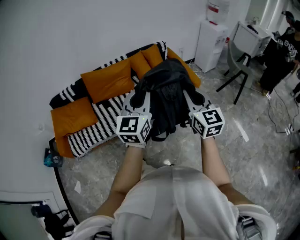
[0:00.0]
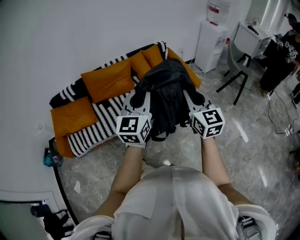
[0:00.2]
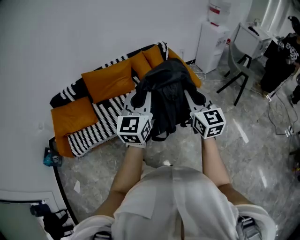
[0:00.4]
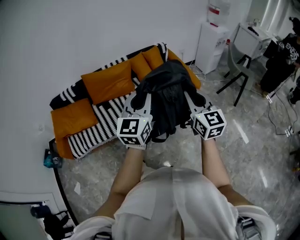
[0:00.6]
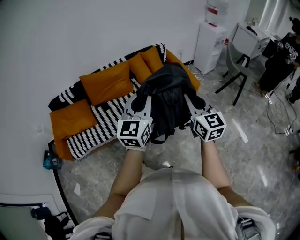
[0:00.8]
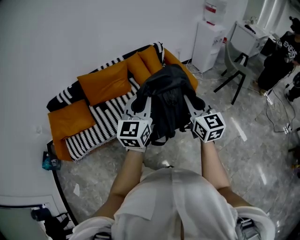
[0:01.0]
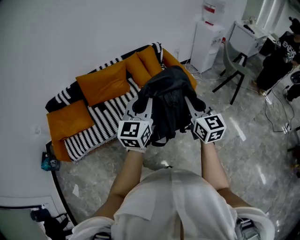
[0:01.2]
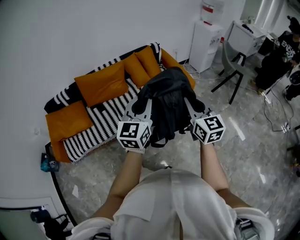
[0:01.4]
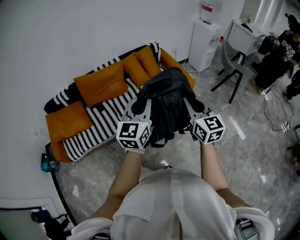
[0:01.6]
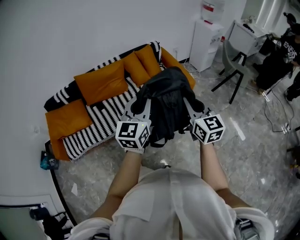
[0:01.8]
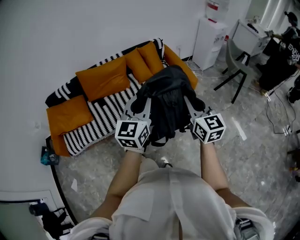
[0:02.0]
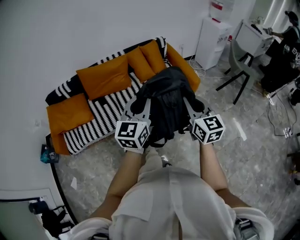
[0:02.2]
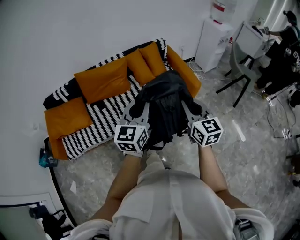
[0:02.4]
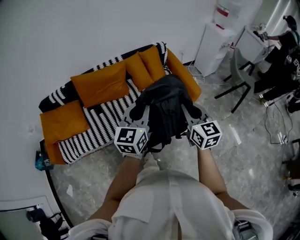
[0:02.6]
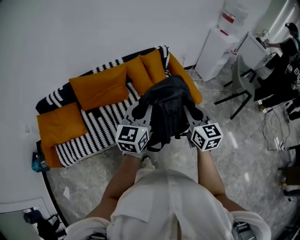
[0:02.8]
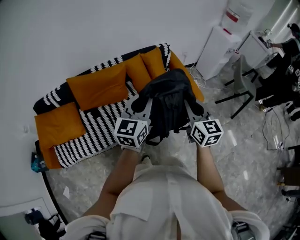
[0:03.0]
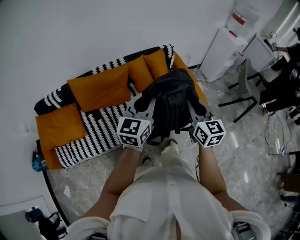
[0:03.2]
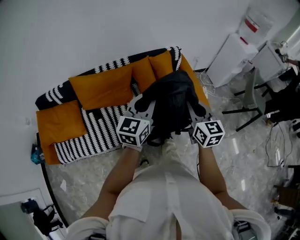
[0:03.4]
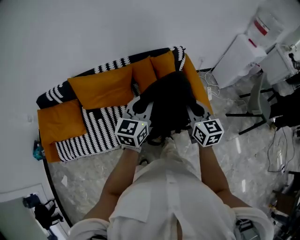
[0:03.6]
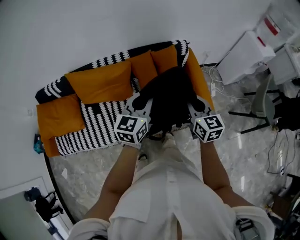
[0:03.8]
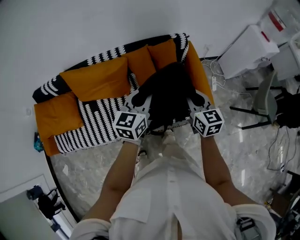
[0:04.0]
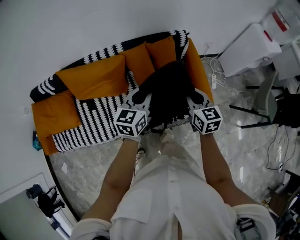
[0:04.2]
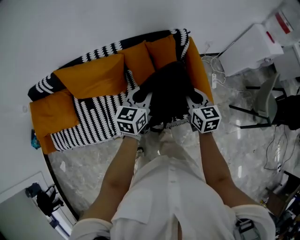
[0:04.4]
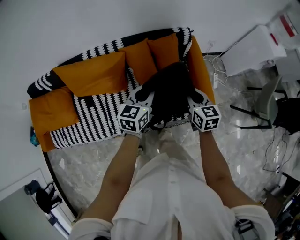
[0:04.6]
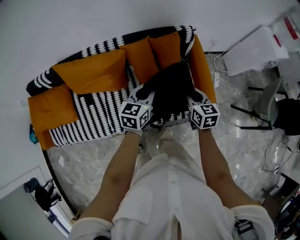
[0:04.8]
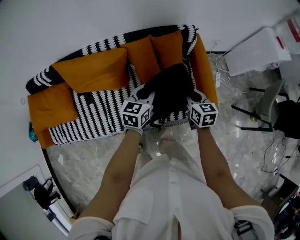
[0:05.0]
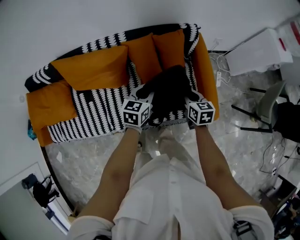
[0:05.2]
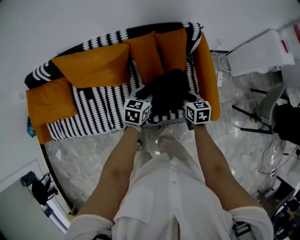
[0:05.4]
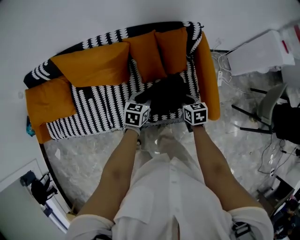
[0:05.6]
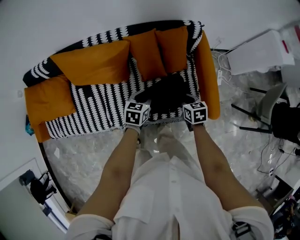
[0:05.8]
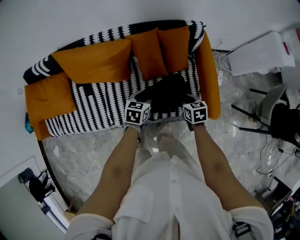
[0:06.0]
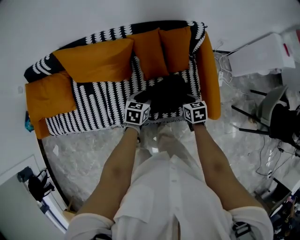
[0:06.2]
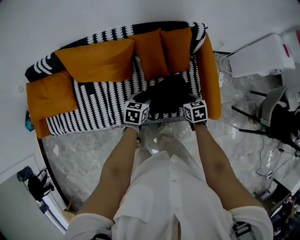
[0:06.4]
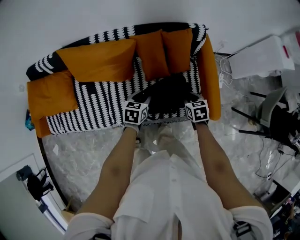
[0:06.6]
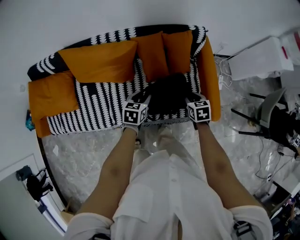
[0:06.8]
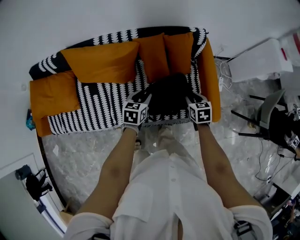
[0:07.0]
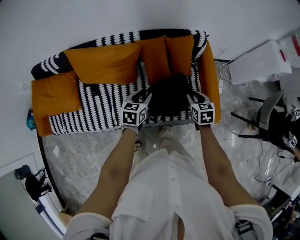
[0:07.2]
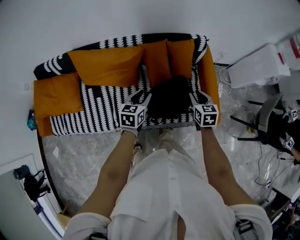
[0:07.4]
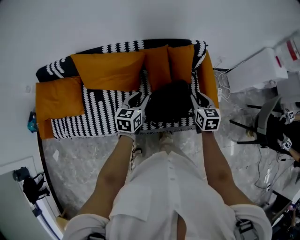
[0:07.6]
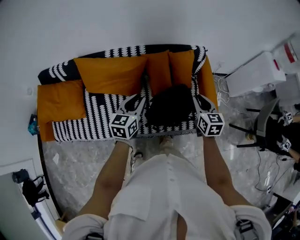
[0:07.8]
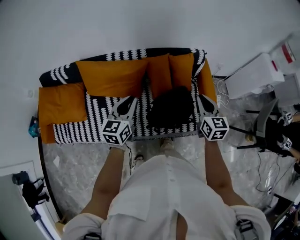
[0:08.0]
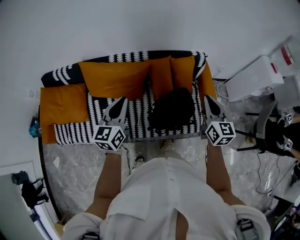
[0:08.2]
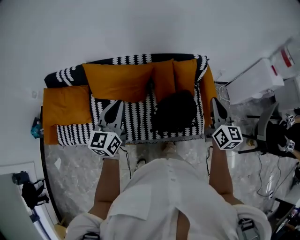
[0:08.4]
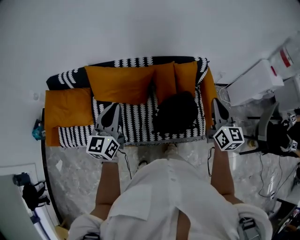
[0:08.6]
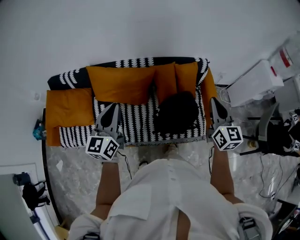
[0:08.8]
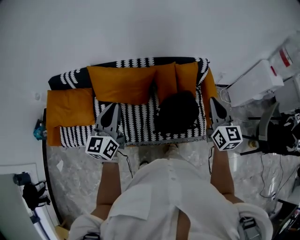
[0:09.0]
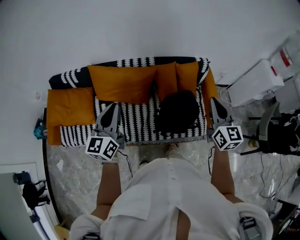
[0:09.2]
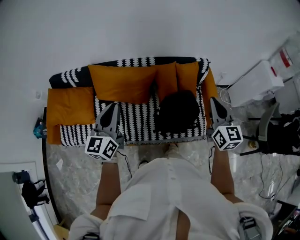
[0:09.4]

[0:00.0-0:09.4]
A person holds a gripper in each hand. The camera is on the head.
0:00.0 to 0:01.6: There are only small adjustments of the grippers.
0:01.6 to 0:03.2: The grippers both shift forward by about 30 cm.
0:03.2 to 0:04.8: Both grippers travel together forward and downward, approximately 35 cm. The right gripper rotates approximately 30 degrees; the left gripper rotates roughly 30 degrees.
0:04.8 to 0:06.2: The left gripper travels downward and to the left by about 15 cm, rotates some 20 degrees, and opens. The right gripper goes about 15 cm downward, and turns by about 20 degrees.
0:06.2 to 0:07.8: The right gripper goes some 20 cm upward, and turns by about 30 degrees; the left gripper is displaced upward and to the left by about 20 cm, and rotates some 30 degrees.
0:07.8 to 0:09.4: The left gripper travels upward, to the left and backward by some 25 cm, and turns by approximately 20 degrees. Meanwhile the right gripper is displaced upward by some 15 cm, and turns by some 20 degrees.

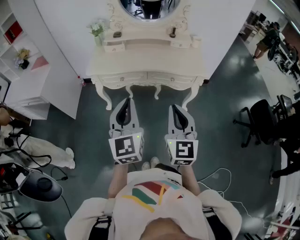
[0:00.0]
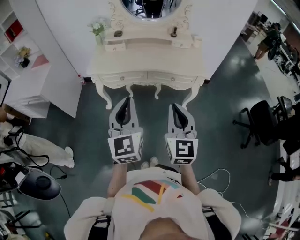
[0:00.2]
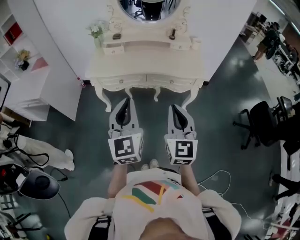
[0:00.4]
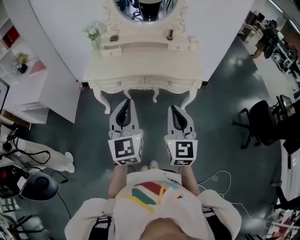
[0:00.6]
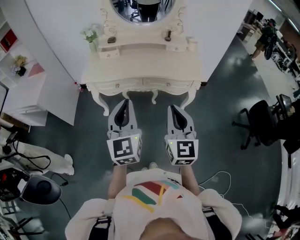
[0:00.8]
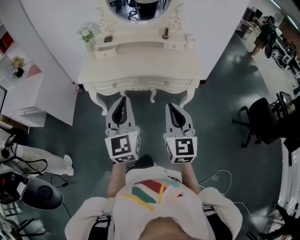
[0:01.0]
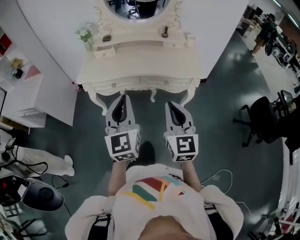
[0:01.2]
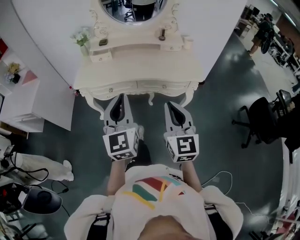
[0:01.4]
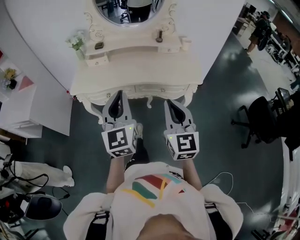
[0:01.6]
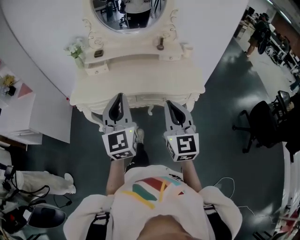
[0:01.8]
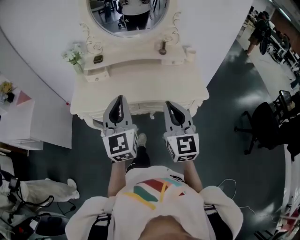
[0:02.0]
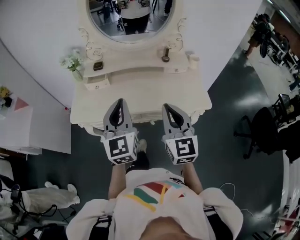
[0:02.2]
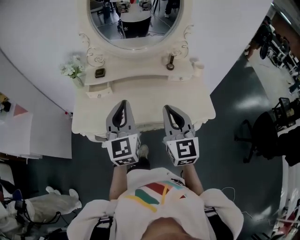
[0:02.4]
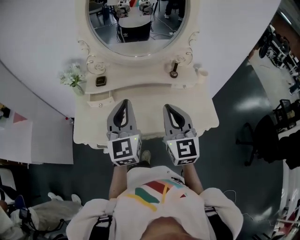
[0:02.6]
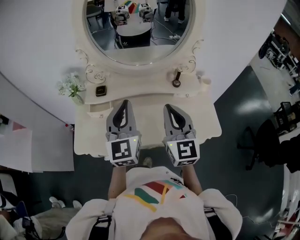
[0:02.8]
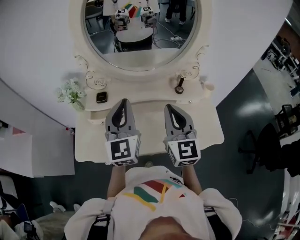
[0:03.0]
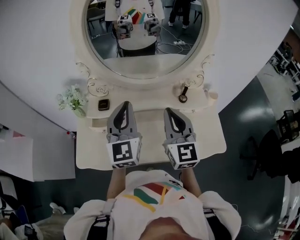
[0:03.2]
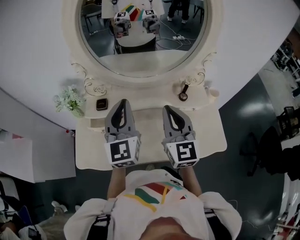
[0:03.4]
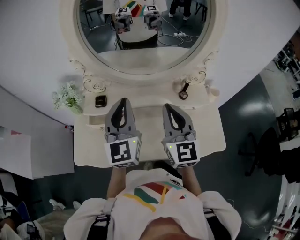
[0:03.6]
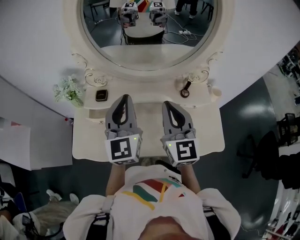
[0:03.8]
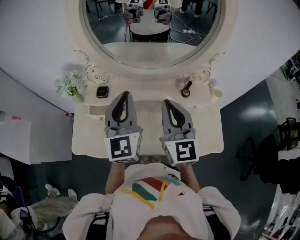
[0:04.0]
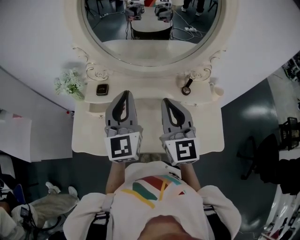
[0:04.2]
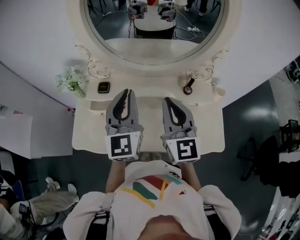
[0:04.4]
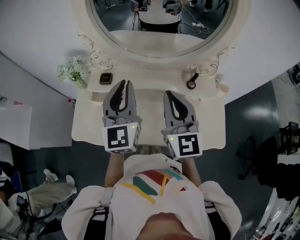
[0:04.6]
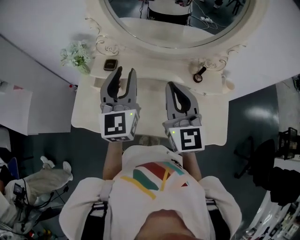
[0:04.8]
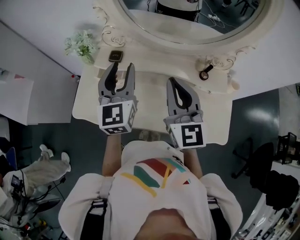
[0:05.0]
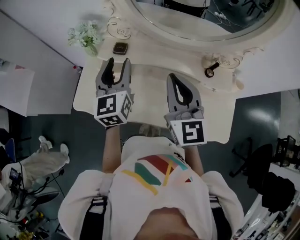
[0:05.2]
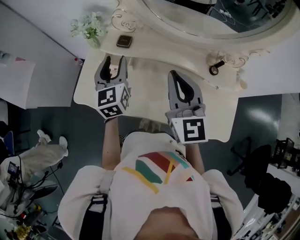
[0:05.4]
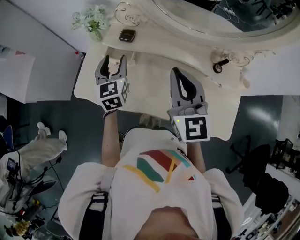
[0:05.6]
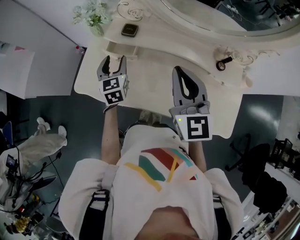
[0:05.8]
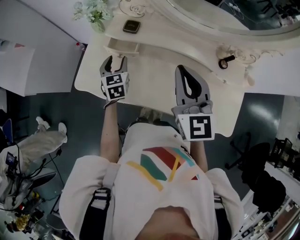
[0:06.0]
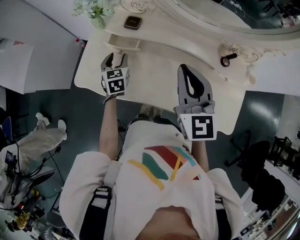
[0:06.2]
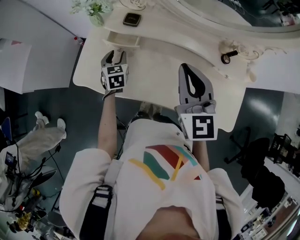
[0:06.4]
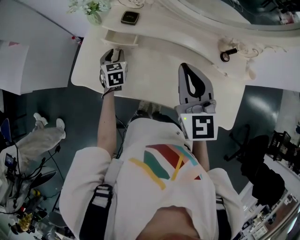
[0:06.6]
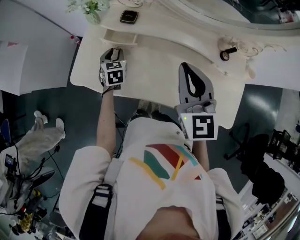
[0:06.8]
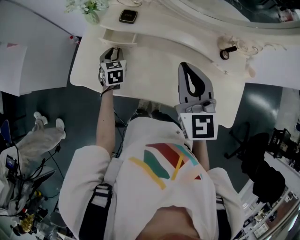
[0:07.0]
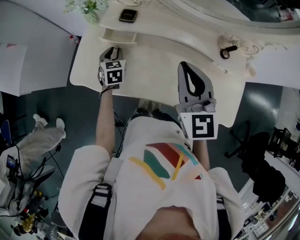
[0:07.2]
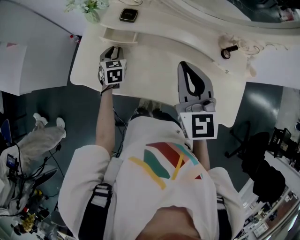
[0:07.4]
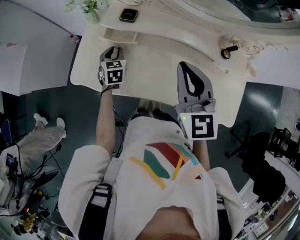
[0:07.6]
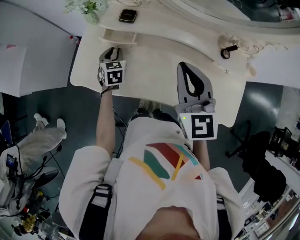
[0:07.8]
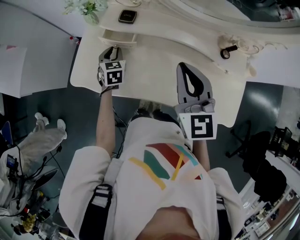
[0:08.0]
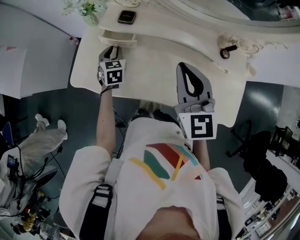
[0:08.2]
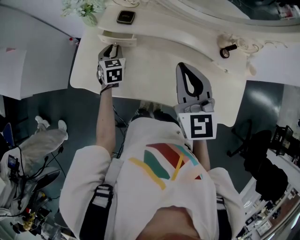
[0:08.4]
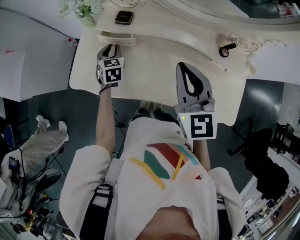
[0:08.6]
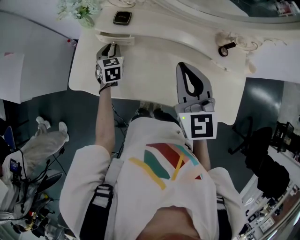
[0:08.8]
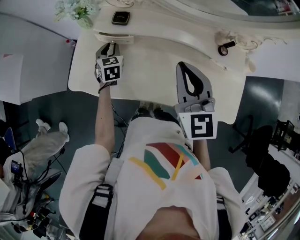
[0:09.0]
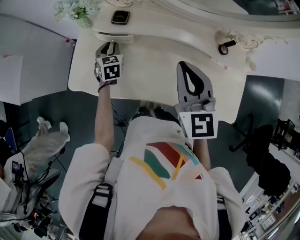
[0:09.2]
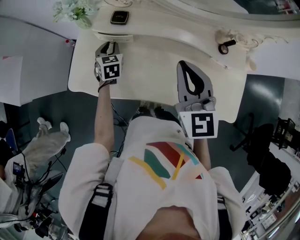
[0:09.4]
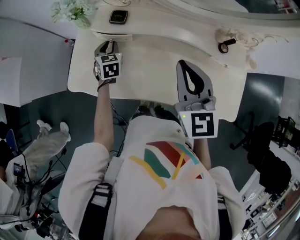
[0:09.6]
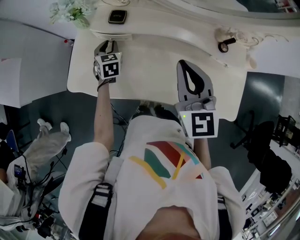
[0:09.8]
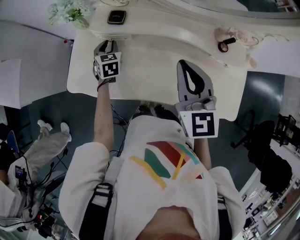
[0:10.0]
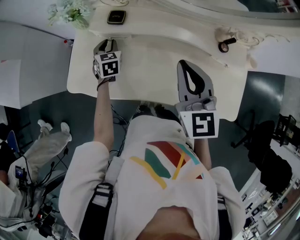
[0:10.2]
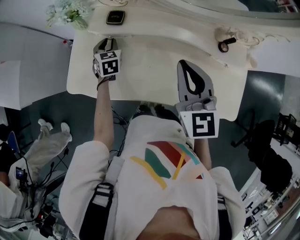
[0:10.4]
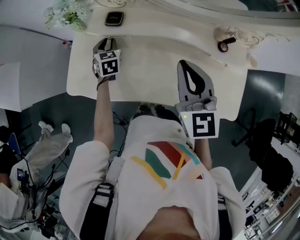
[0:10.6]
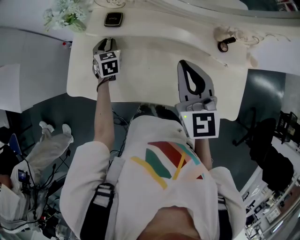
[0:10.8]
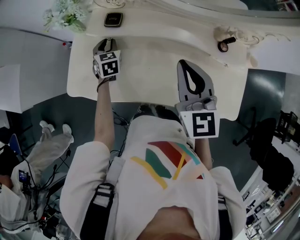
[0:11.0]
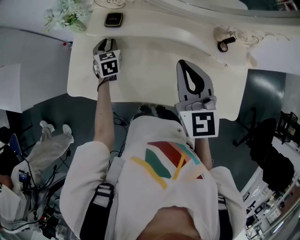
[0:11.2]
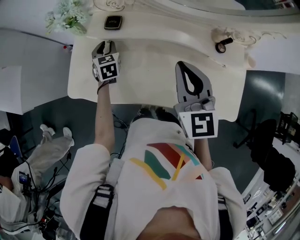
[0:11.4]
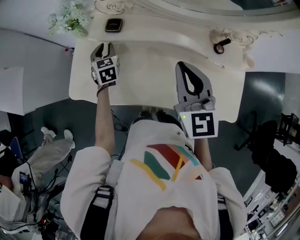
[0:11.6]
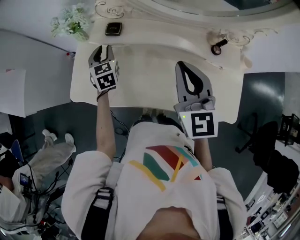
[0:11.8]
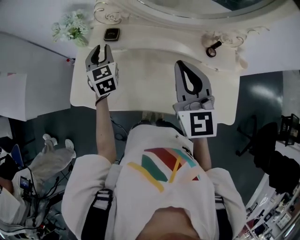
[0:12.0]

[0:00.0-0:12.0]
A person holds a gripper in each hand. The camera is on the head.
0:00.0 to 0:01.6: The left gripper travels forward by about 15 cm. The right gripper is displaced forward and to the right by roughly 15 cm.
0:01.6 to 0:03.0: The two grippers travel together, forward, some 40 cm.
0:03.0 to 0:04.4: The right gripper shifts some 5 cm forward.
0:04.4 to 0:06.0: The left gripper goes some 35 cm downward and to the left, tips its fingers downward by roughly 40 degrees, and opens up; the right gripper is displaced to the left and downward by some 10 cm.
0:06.0 to 0:07.6: The left gripper moves downward, some 5 cm, and closes its fingers.
0:07.6 to 0:09.0: The grippers stay close to where they were, moving slightly.
0:09.0 to 0:10.4: The grippers move only a little.
0:10.4 to 0:12.0: The right gripper ends up approximately 5 cm from where it was; the left gripper heads upward, covering roughly 15 cm.

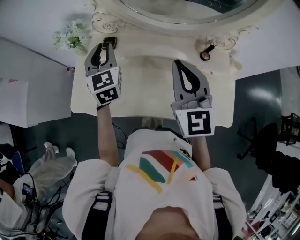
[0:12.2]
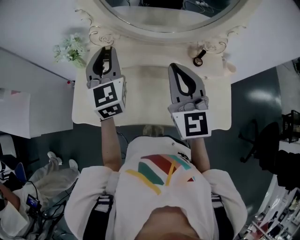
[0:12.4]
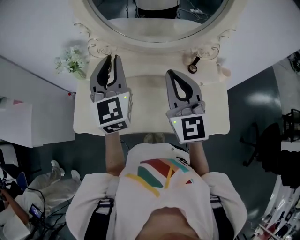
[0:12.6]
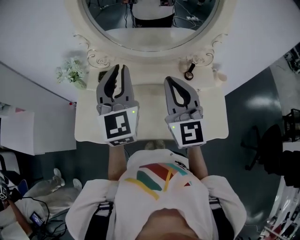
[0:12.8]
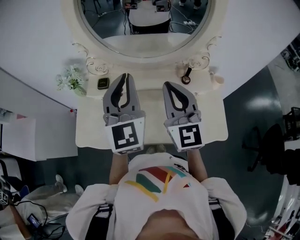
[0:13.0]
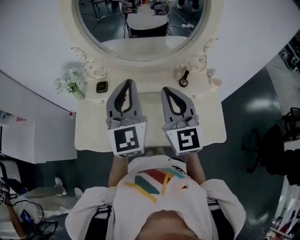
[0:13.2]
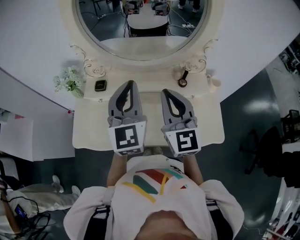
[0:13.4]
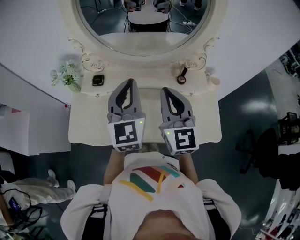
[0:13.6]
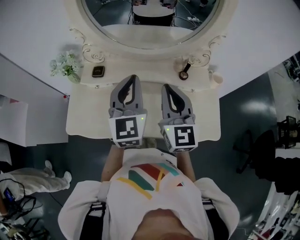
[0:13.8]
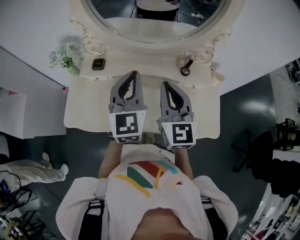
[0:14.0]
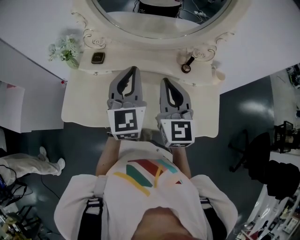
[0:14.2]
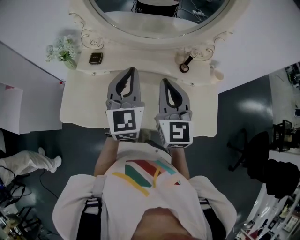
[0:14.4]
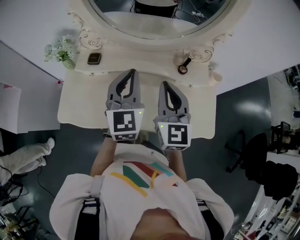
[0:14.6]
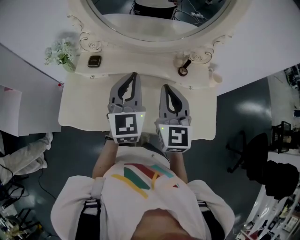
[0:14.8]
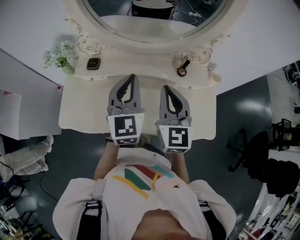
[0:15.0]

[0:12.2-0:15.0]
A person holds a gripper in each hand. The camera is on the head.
0:12.2 to 0:13.6: The left gripper travels to the right, upward and backward by approximately 20 cm, and changes its angle by some 20 degrees. Meanwhile the right gripper is displaced to the right by approximately 5 cm.
0:13.6 to 0:15.0: The left gripper shifts some 5 cm downward.
